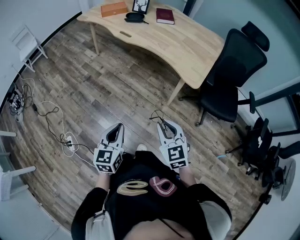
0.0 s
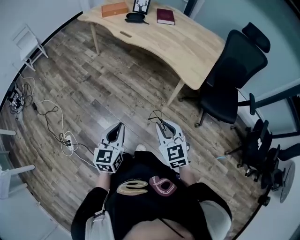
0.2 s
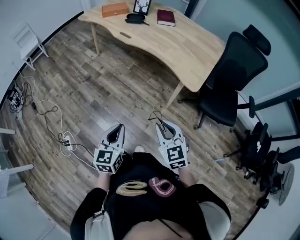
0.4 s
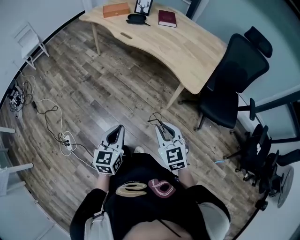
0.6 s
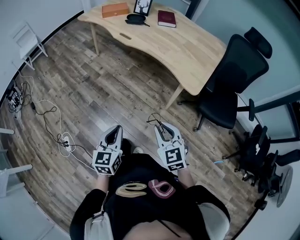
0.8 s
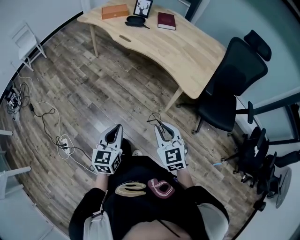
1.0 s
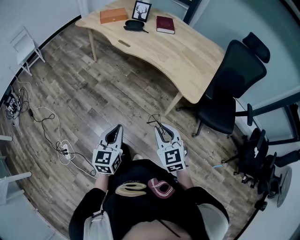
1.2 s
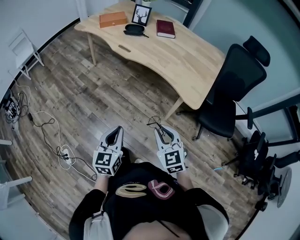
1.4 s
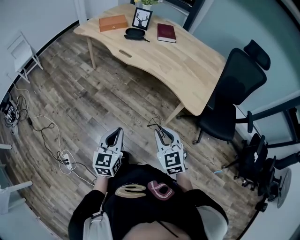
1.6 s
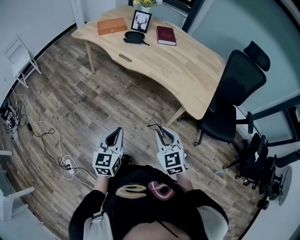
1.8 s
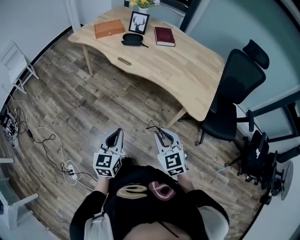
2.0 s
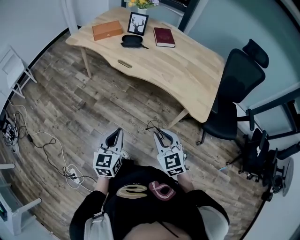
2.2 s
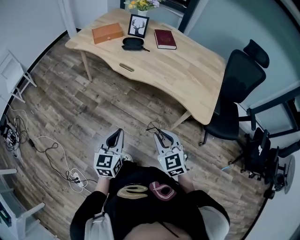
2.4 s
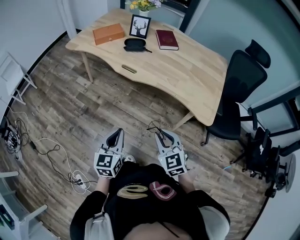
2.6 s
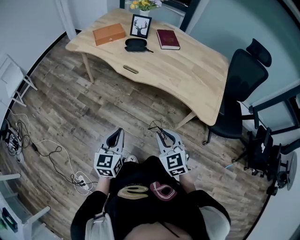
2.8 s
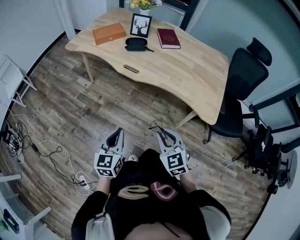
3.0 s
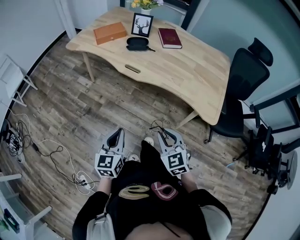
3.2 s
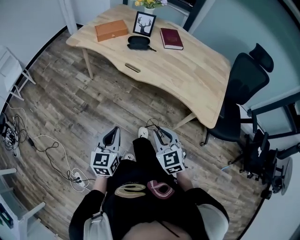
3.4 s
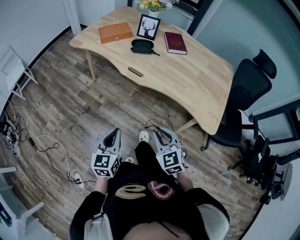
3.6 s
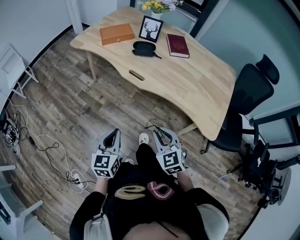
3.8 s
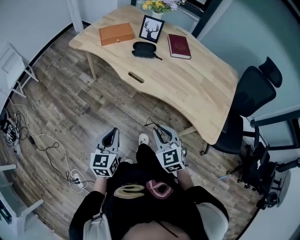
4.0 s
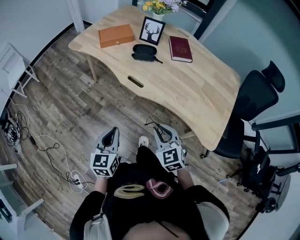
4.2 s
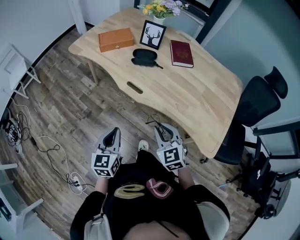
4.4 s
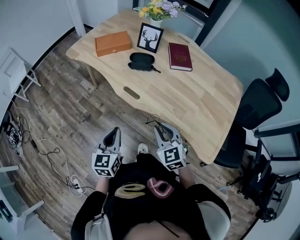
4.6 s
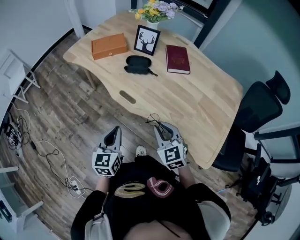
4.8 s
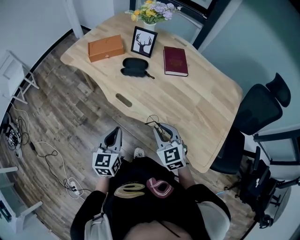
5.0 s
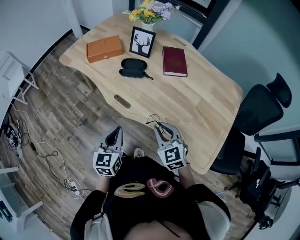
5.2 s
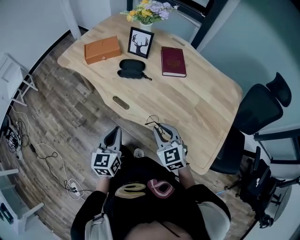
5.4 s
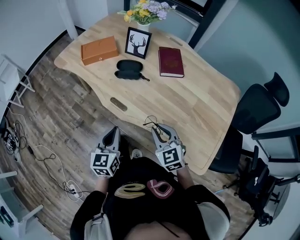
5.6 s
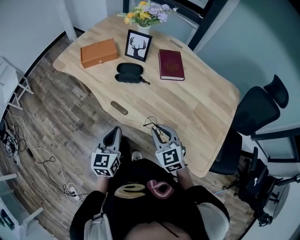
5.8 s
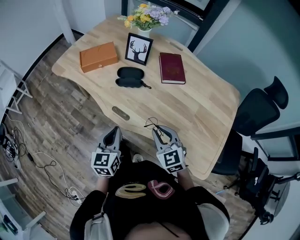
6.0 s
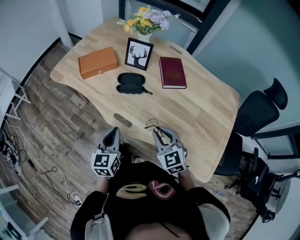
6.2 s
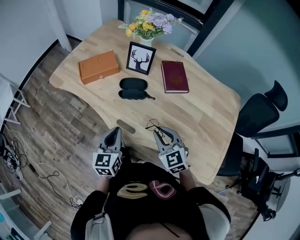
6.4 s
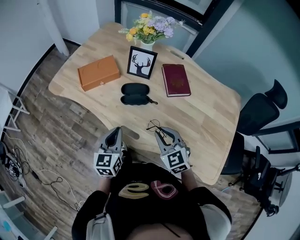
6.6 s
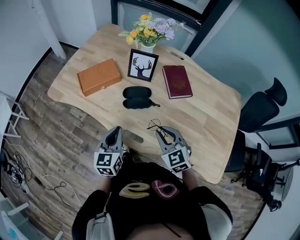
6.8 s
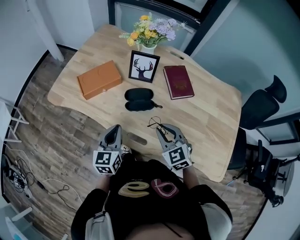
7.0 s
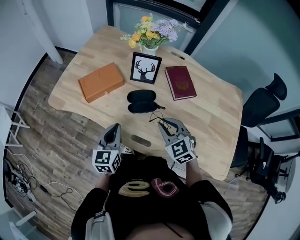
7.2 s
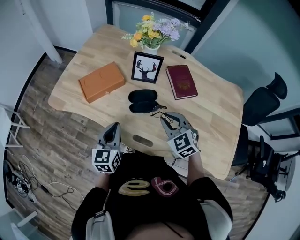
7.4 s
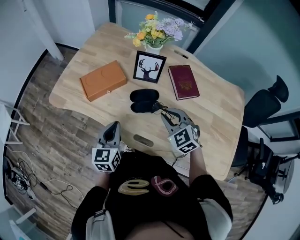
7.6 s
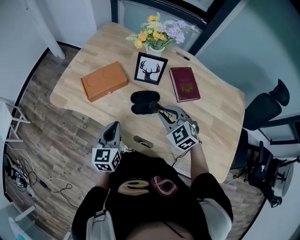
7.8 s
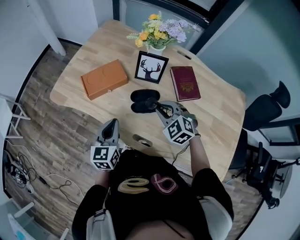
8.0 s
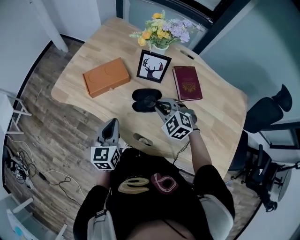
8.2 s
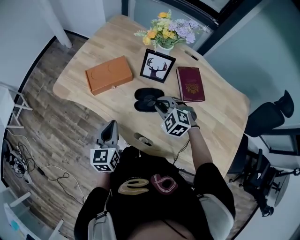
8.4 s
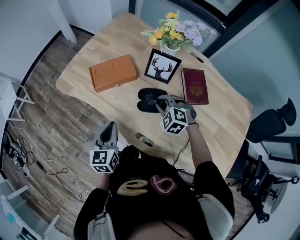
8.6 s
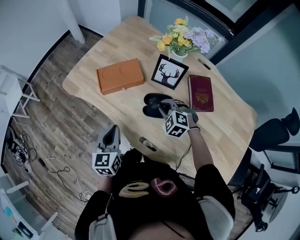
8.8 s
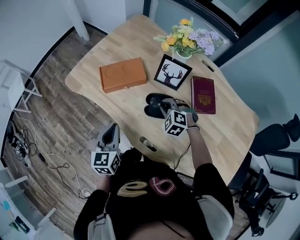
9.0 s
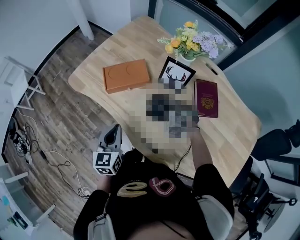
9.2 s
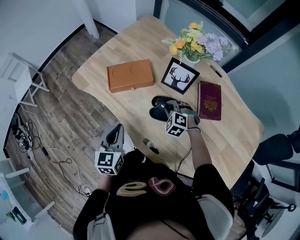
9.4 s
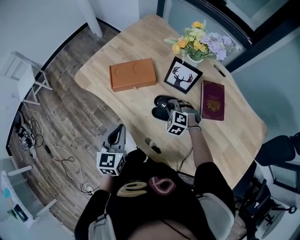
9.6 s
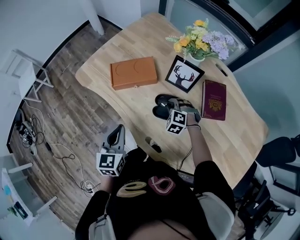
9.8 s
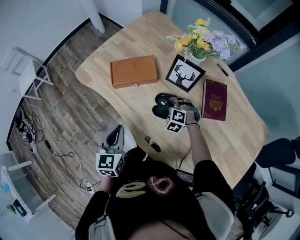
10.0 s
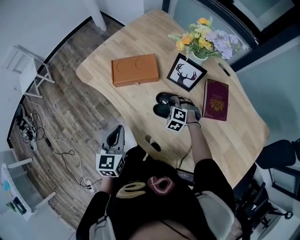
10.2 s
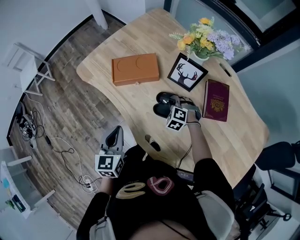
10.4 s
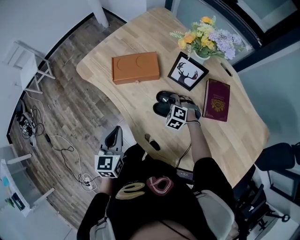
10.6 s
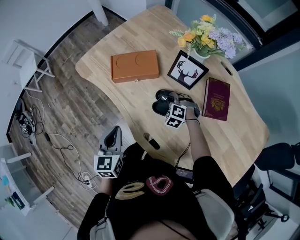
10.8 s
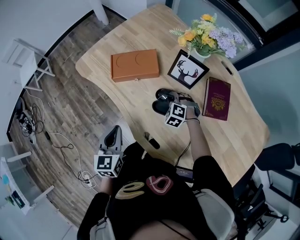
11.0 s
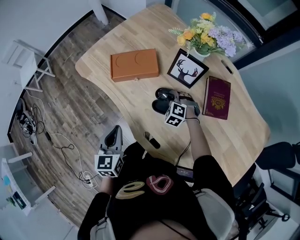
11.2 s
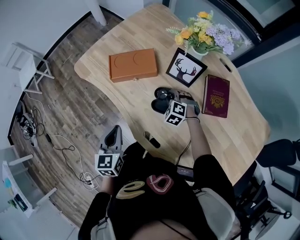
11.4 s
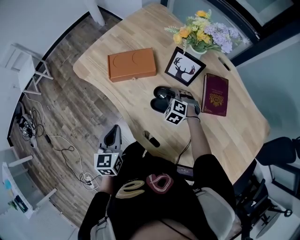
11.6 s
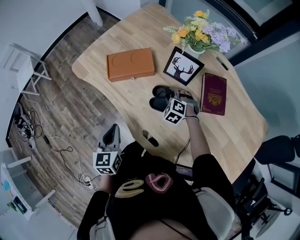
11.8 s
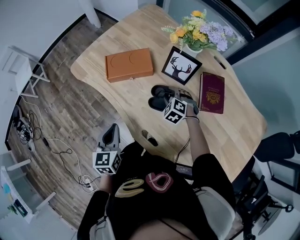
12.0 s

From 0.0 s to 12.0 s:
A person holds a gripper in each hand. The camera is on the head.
From 0.0 s to 1.6 s: The two grippers go about 15 cm forward.
From 1.6 s to 3.0 s: The left gripper is displaced forward and to the left by roughly 20 cm. Meanwhile the right gripper is displaced to the left and forward by some 20 cm.
From 3.0 s to 4.4 s: The grippers both shift forward by approximately 20 cm.
From 4.4 s to 6.0 s: Both grippers travel together forward and to the right, approximately 20 cm.
From 6.0 s to 7.6 s: Both grippers move forward and to the left, roughly 25 cm.
From 7.6 s to 9.0 s: The right gripper moves forward and downward, about 15 cm, and changes its angle by approximately 30 degrees.
From 9.0 s to 10.4 s: The right gripper moves downward, some 10 cm.
From 10.4 s to 12.0 s: The right gripper opens up.

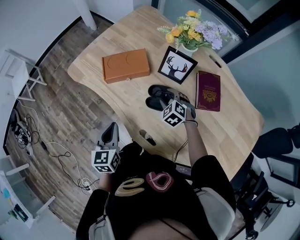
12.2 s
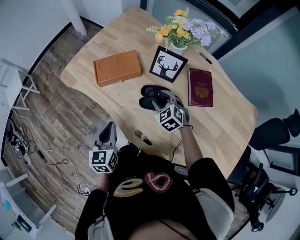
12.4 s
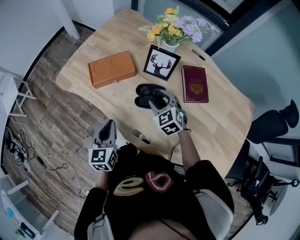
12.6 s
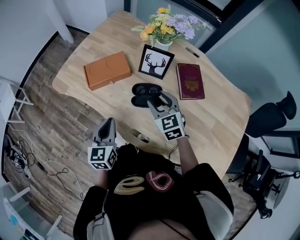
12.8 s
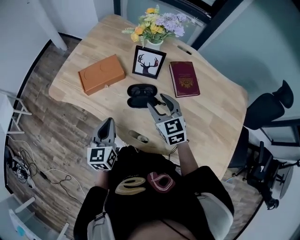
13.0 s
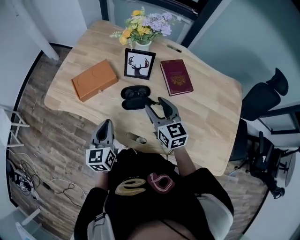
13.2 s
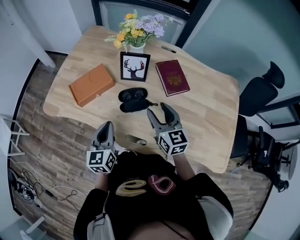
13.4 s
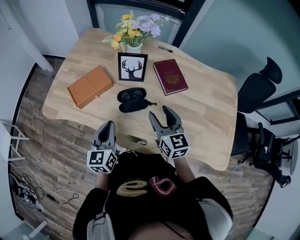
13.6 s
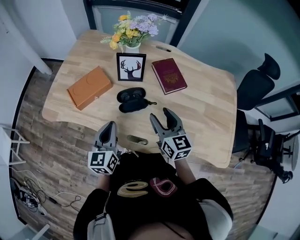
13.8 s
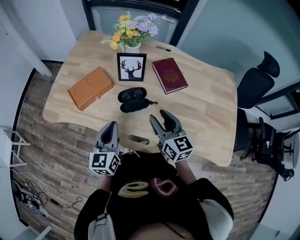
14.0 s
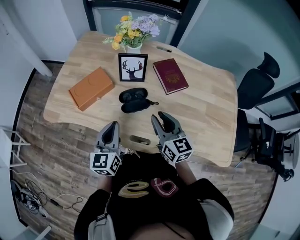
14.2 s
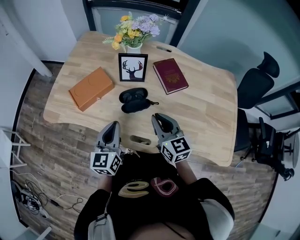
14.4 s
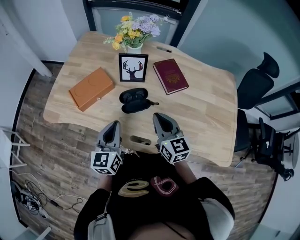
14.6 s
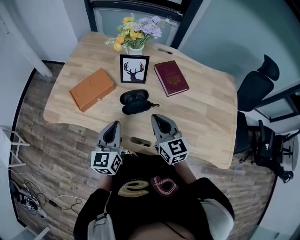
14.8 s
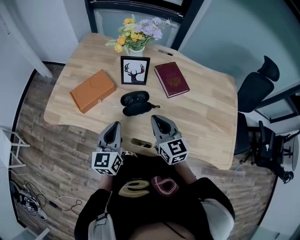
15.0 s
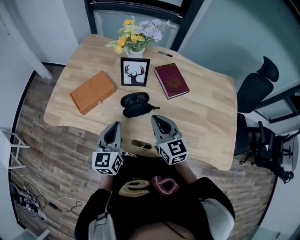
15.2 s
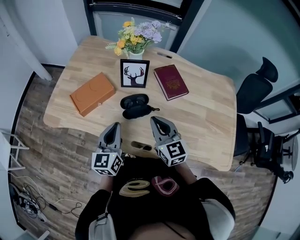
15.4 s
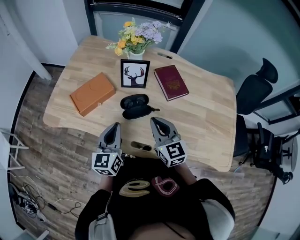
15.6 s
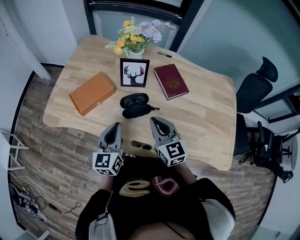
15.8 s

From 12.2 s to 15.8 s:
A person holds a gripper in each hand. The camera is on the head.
From 12.2 s to 14.0 s: The left gripper ends up some 10 cm from where it was, and turns by roughly 30 degrees, while the right gripper shifts approximately 15 cm upward, and points its fingers roughly 40 degrees further upward.
From 14.0 s to 15.8 s: The right gripper closes up.

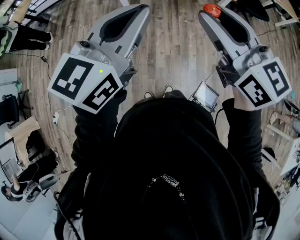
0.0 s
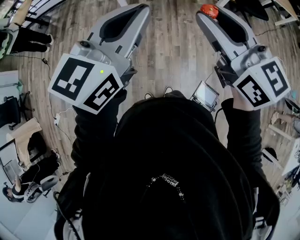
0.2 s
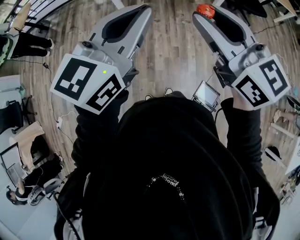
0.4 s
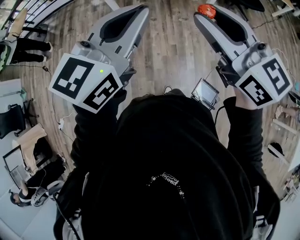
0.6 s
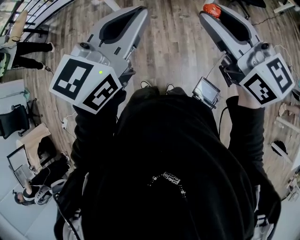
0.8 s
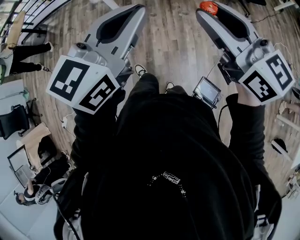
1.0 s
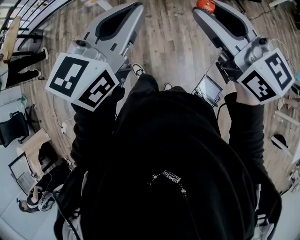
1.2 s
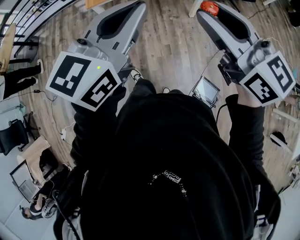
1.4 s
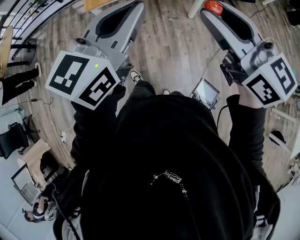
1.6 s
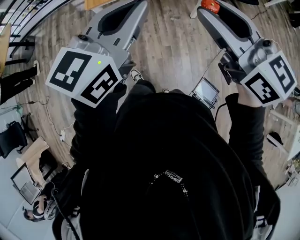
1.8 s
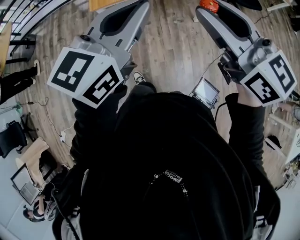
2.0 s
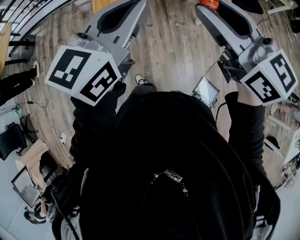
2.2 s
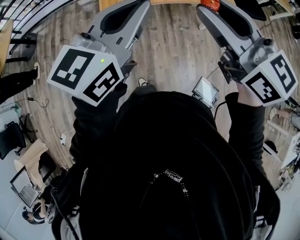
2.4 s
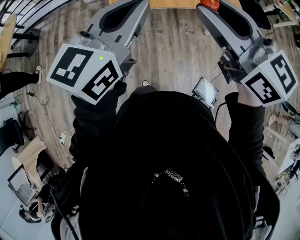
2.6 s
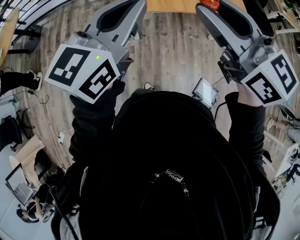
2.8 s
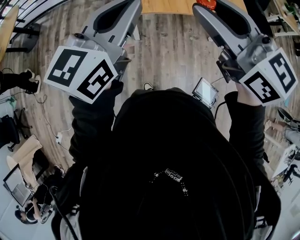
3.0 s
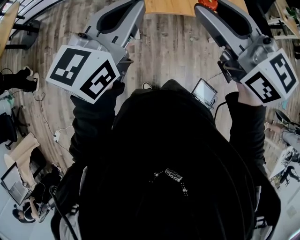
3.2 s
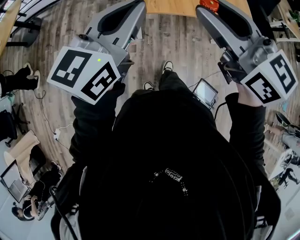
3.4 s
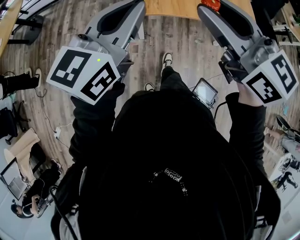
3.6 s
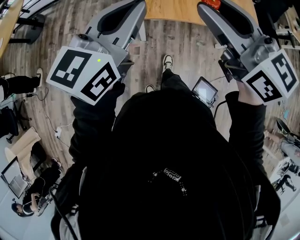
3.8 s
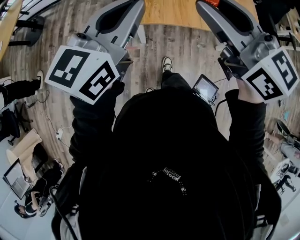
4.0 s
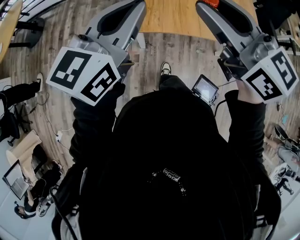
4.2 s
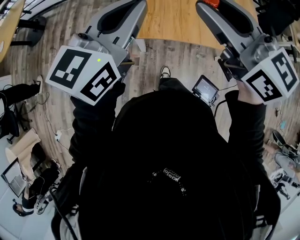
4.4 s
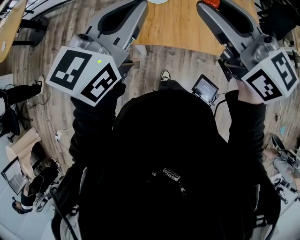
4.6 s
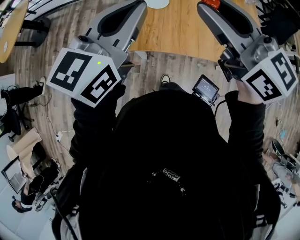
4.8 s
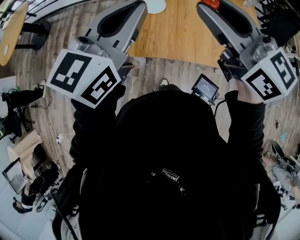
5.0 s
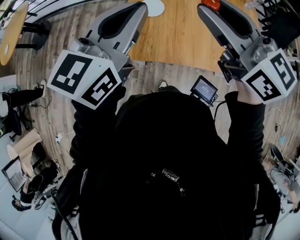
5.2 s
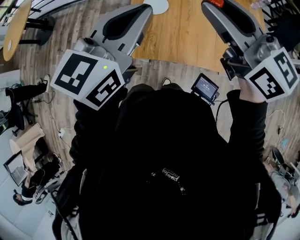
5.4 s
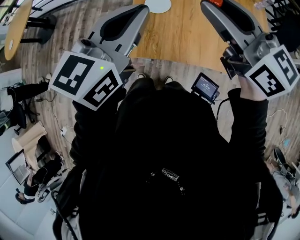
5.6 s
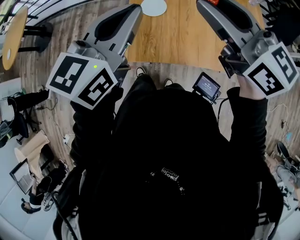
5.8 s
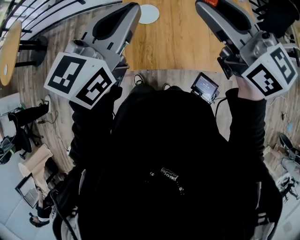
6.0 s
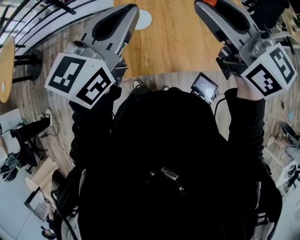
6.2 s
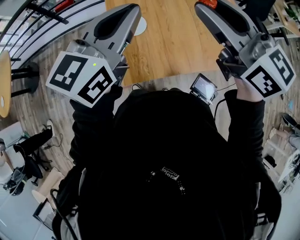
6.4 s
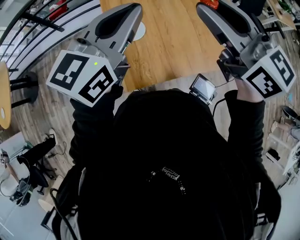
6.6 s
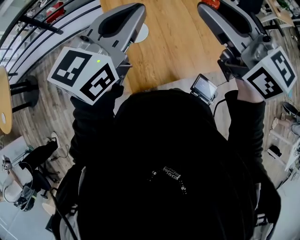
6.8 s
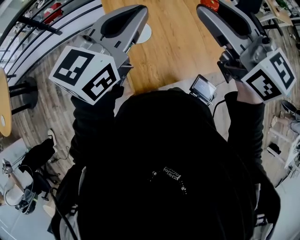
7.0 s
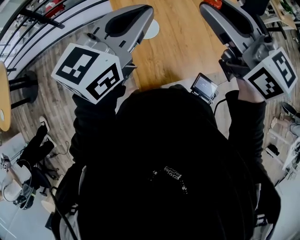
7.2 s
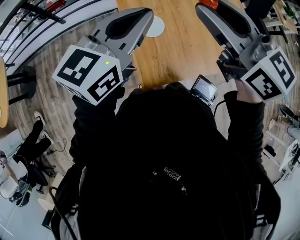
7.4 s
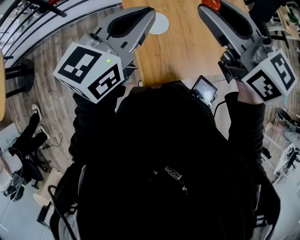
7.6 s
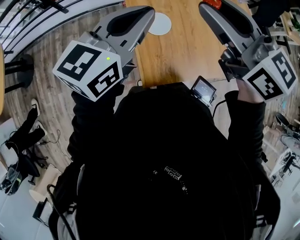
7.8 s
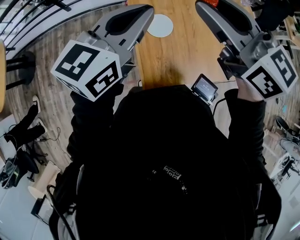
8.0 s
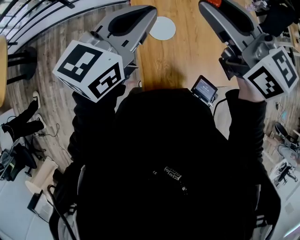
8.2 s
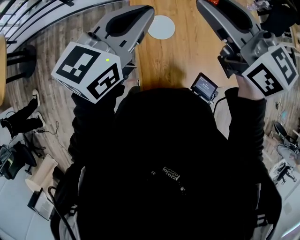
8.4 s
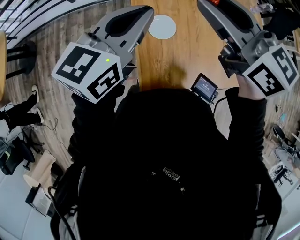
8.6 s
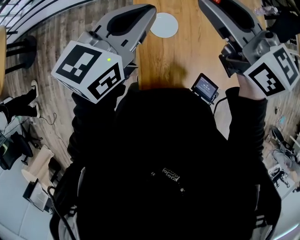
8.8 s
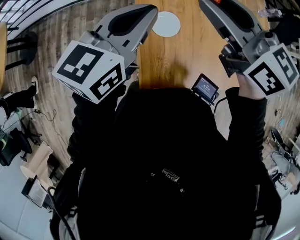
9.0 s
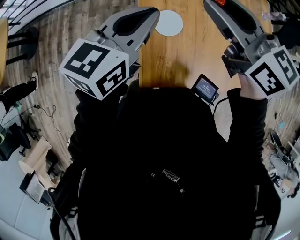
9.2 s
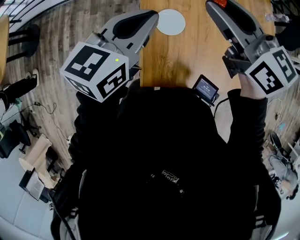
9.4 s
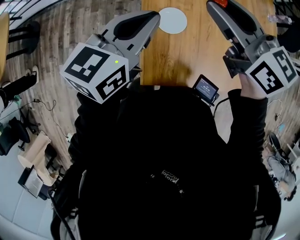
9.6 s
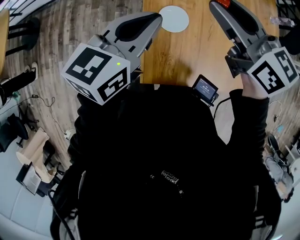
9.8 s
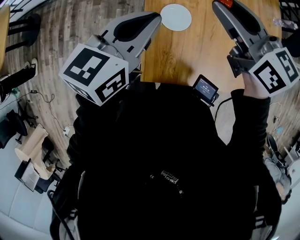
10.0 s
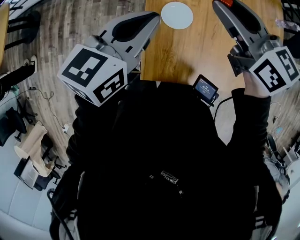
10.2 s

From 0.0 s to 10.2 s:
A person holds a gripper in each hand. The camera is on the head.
From 0.0 s to 1.4 s: Both grippers travel together to the right, some 5 cm.
From 1.4 s to 3.0 s: The grippers both shift to the left and forward by approximately 30 cm.
From 3.0 s to 4.4 s: Both grippers travel together forward, approximately 15 cm.
From 4.4 s to 5.8 s: The grippers both shift forward by roughly 10 cm.
From 5.8 s to 7.2 s: The right gripper travels forward by roughly 5 cm, and turns by roughly 20 degrees. The left gripper moves forward, about 10 cm, and turns by about 20 degrees.
From 7.2 s to 8.8 s: The left gripper shifts by roughly 5 cm. Meanwhile the right gripper is displaced to the left and forward by about 10 cm.
From 8.8 s to 10.2 s: The right gripper moves downward, some 5 cm. The left gripper shifts by approximately 5 cm.
